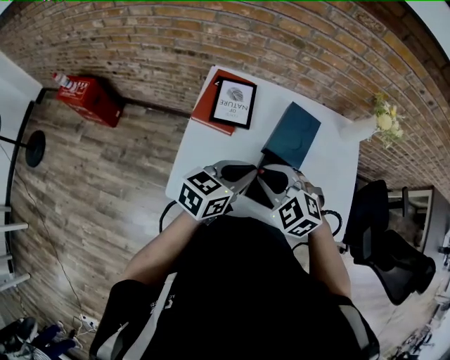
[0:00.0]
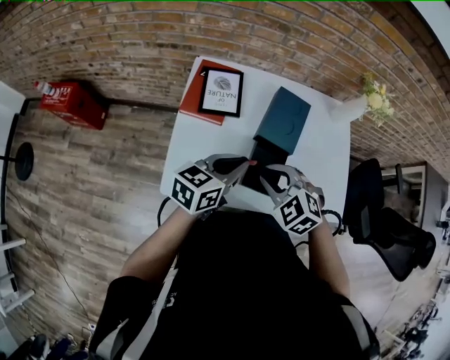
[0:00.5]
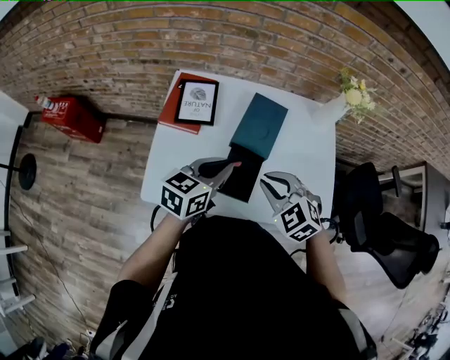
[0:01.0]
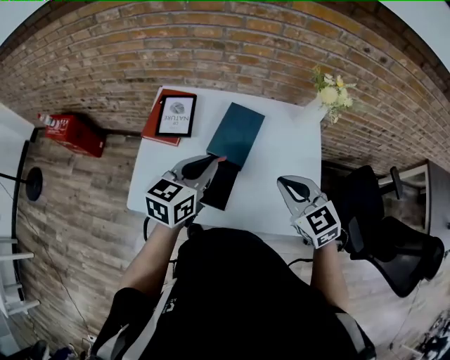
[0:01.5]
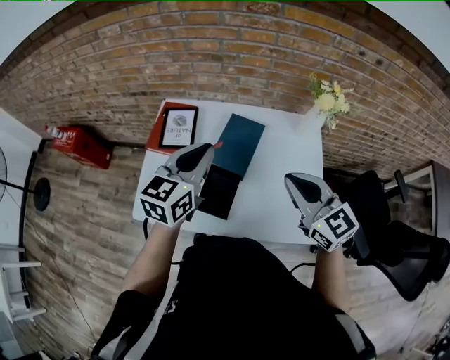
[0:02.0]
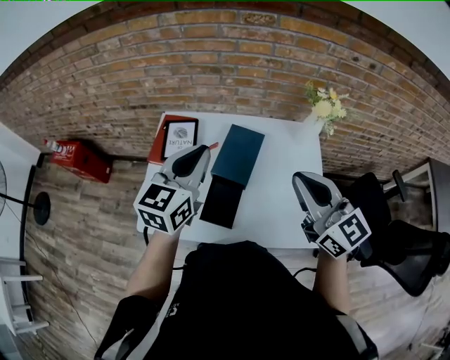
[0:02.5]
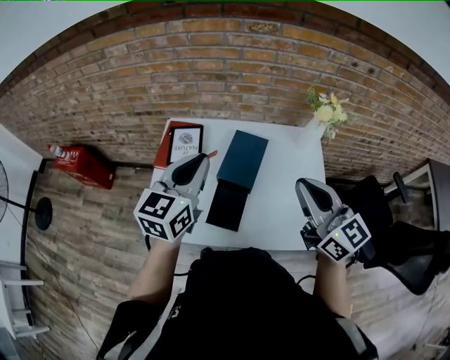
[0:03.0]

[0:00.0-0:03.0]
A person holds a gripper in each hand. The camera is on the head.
0:00.0 to 0:01.5: The right gripper moves to the right, some 25 cm, and turns by some 30 degrees; the left gripper is displaced to the right and upward by some 10 cm.
0:01.5 to 0:03.0: The left gripper moves upward and to the left, approximately 10 cm. Meanwhile the right gripper heads upward, covering some 15 cm, and rotates approximately 40 degrees.

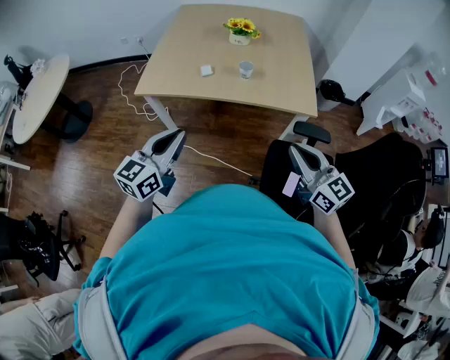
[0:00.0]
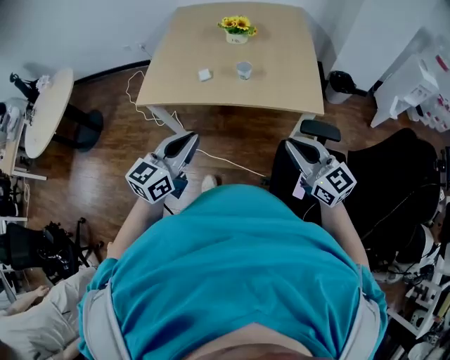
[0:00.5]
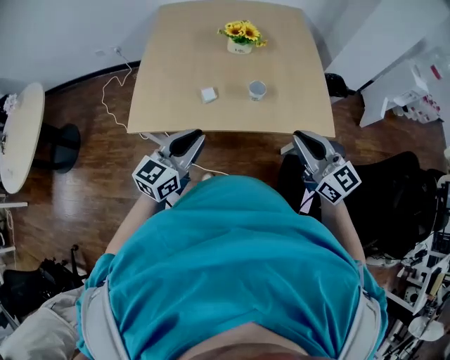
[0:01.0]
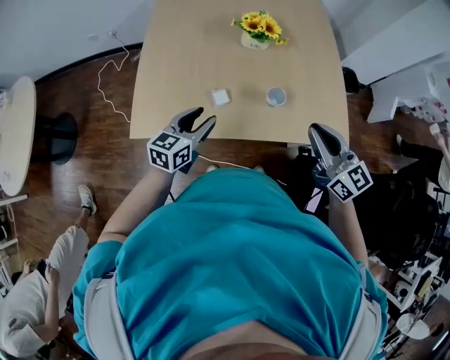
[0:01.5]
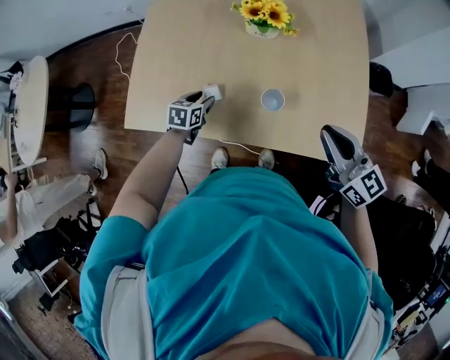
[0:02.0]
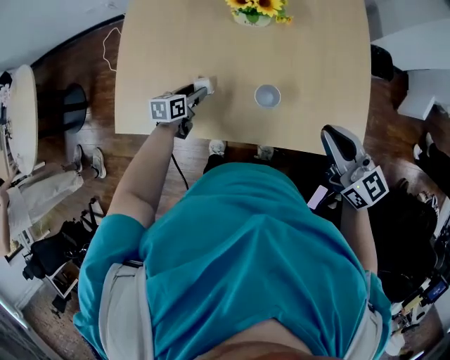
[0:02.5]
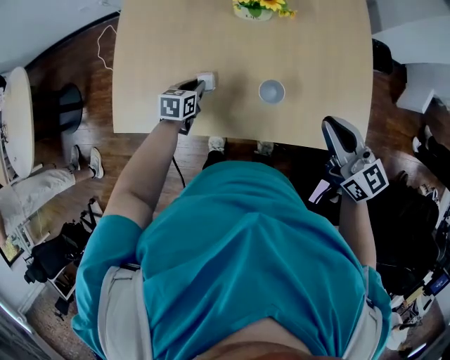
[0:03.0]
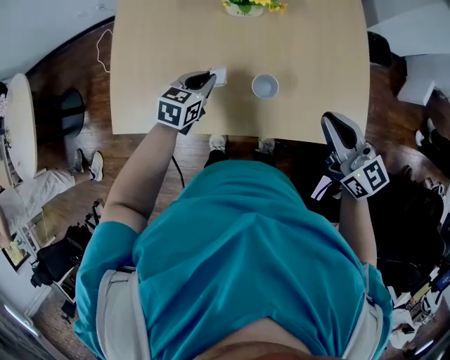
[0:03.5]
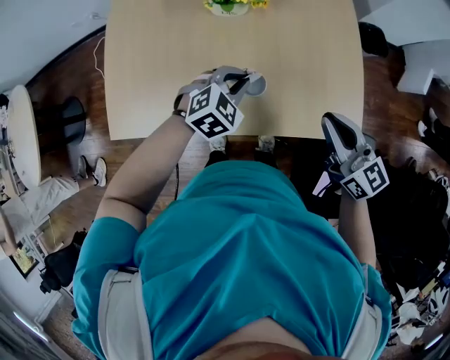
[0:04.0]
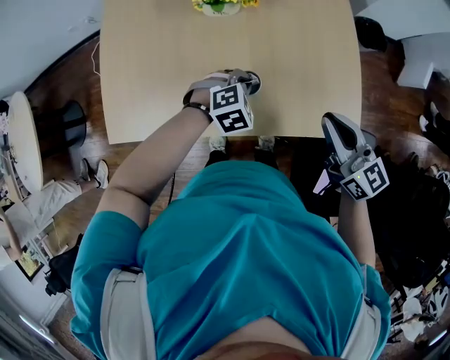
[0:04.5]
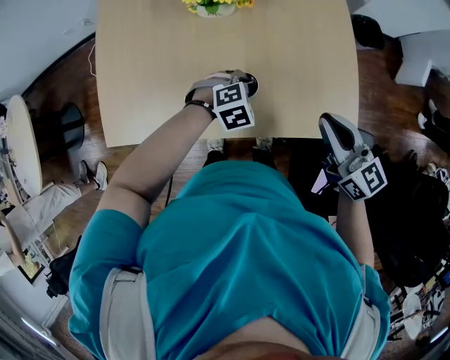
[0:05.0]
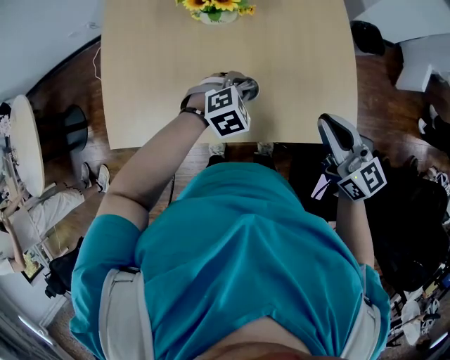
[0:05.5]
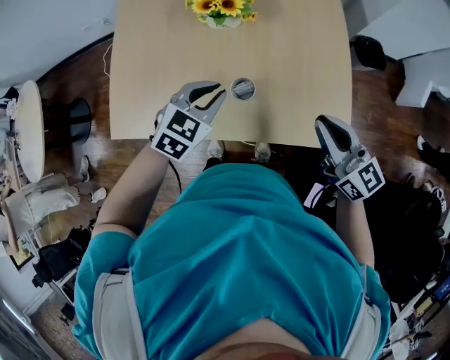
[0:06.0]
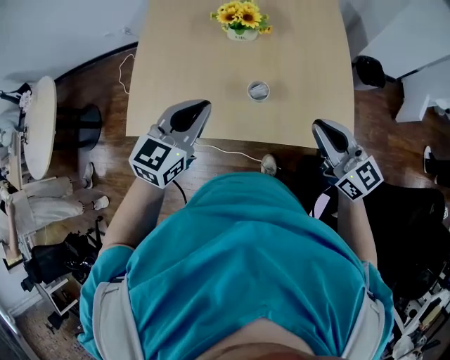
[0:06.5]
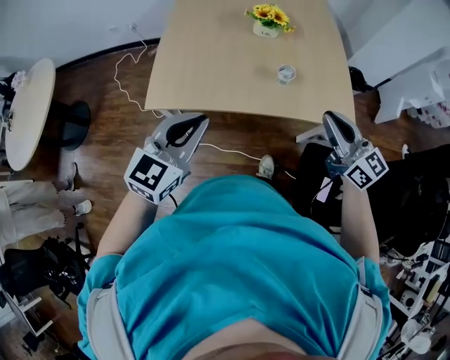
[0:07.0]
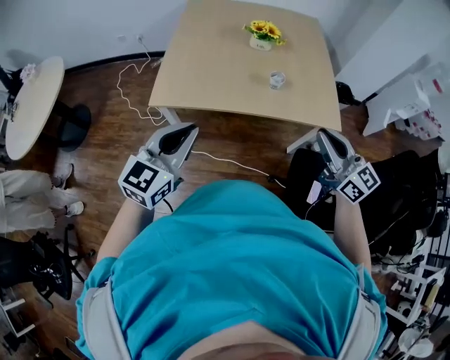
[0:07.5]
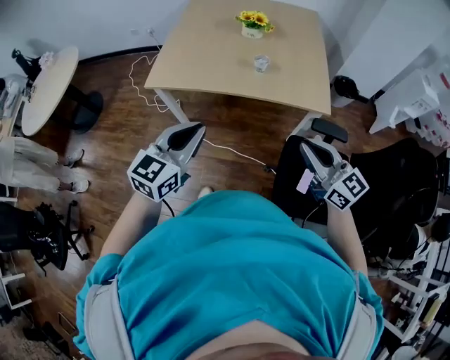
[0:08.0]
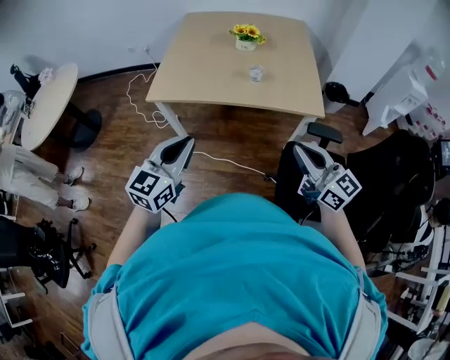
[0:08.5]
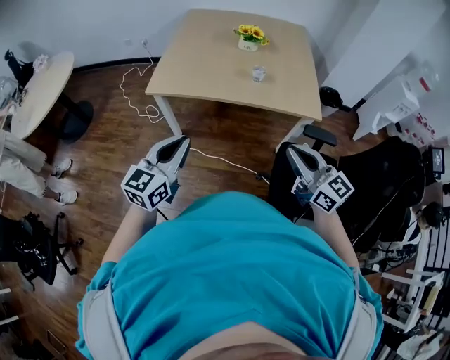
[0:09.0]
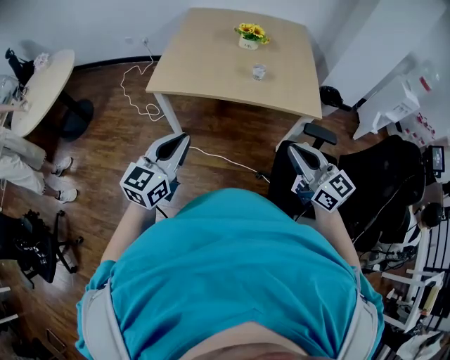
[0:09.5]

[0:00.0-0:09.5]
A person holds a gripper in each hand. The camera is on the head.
0:00.0 to 0:02.0: The pair of grippers is taken forward, roughly 40 cm. The left gripper heads downward, covering approximately 30 cm, tips its fingers downward by about 40 degrees, and opens.
0:02.0 to 0:04.0: The left gripper travels to the right and upward by some 25 cm, twists roughly 60 degrees clockwise, seen from behind, and closes up.
0:04.0 to 0:05.5: The left gripper is displaced downward by about 5 cm.
0:05.5 to 0:07.5: The left gripper moves backward, upward and to the left, approximately 60 cm, tilts its fingers approximately 60 degrees upward, and closes, while the right gripper is displaced backward, upward and to the left by approximately 35 cm.
0:07.5 to 0:09.5: Both grippers travel together backward, some 15 cm.

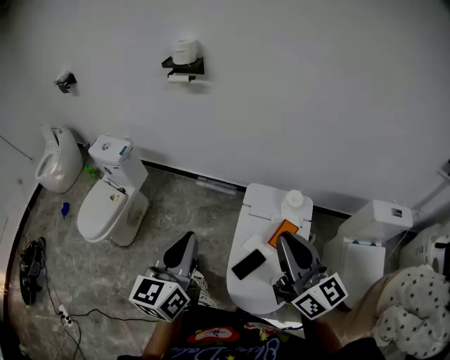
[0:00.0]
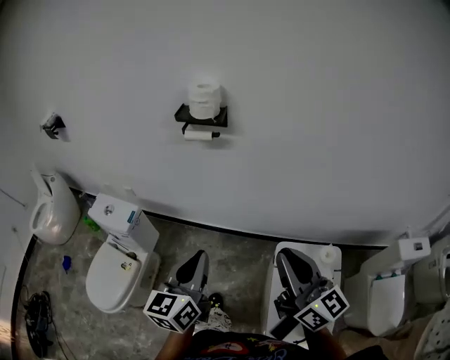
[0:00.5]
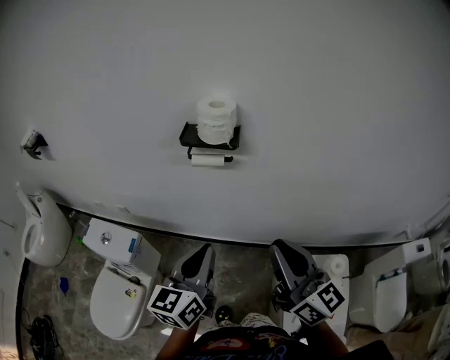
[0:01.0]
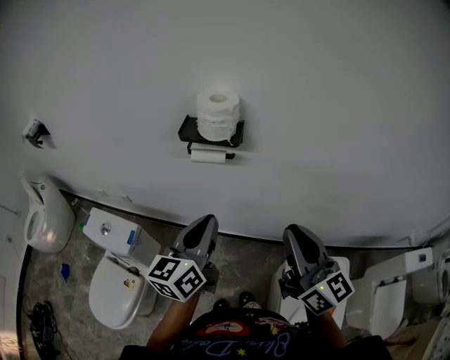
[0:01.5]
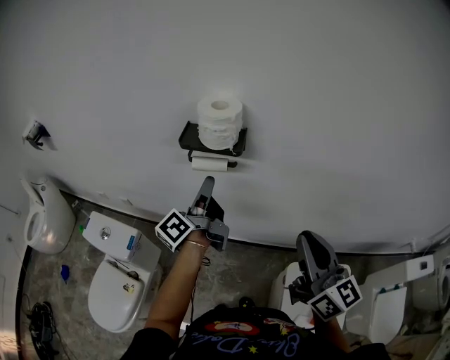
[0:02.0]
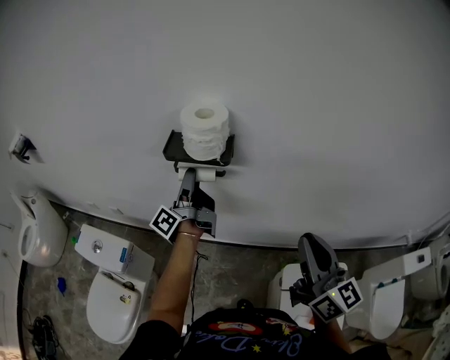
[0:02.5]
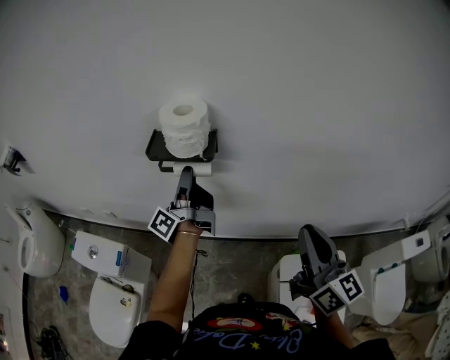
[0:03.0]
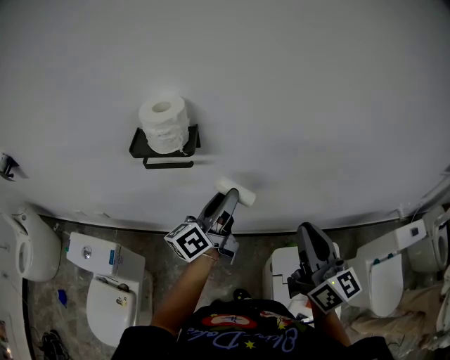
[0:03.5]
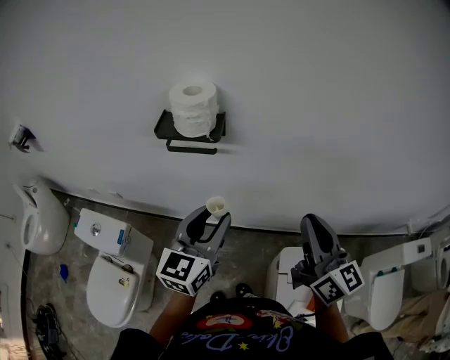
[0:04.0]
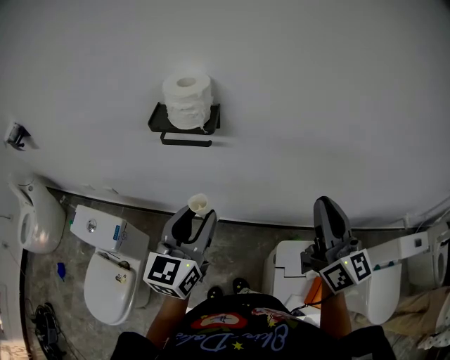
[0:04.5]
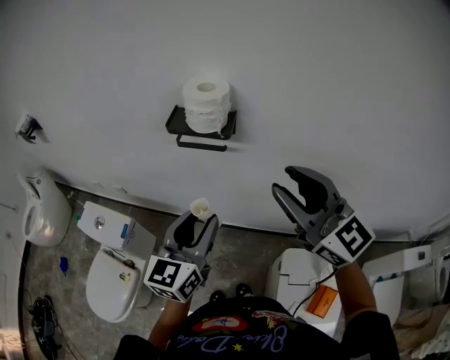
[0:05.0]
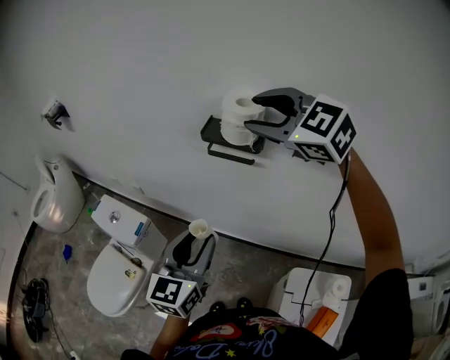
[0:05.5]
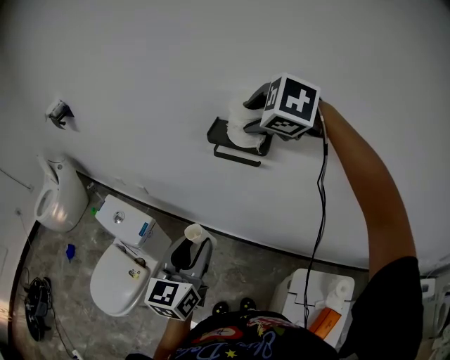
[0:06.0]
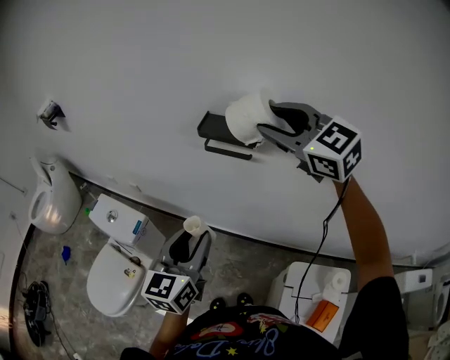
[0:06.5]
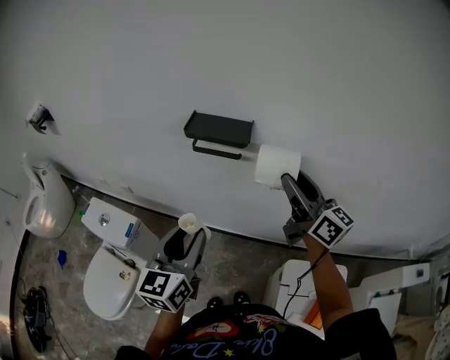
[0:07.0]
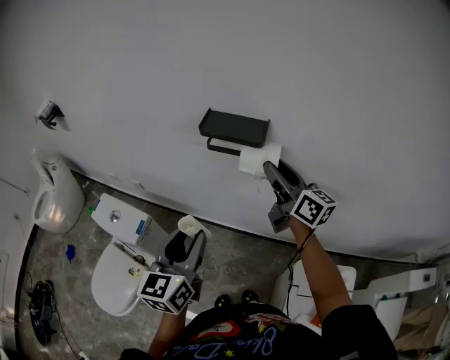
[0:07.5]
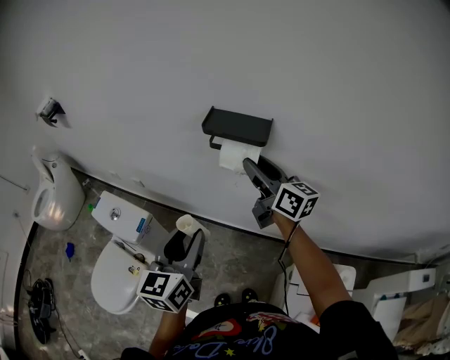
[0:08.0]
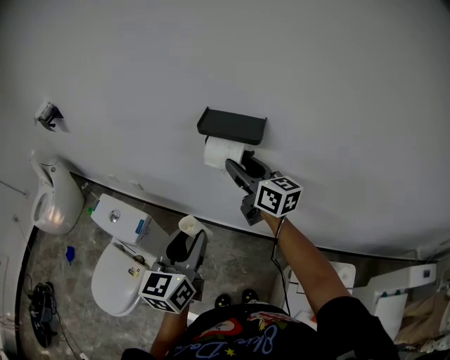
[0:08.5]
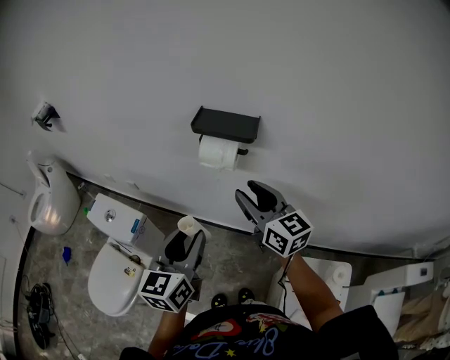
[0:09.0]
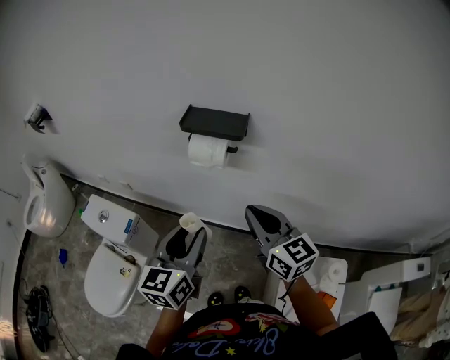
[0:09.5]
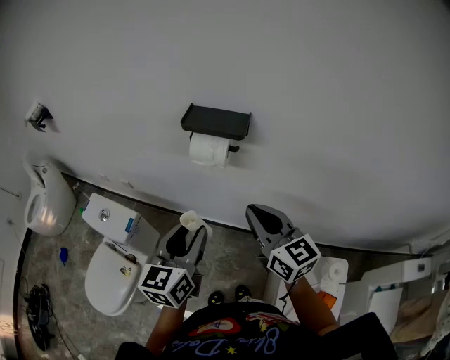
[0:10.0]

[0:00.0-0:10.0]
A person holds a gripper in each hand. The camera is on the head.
0:00.0 to 0:02.0: Both grippers are carried forward, roughly 60 cm. The left gripper twists approximately 50 degrees counterclockwise, seen from behind, and opens.
0:02.0 to 0:04.0: The left gripper goes about 15 cm backward and to the right, twists some 60 degrees clockwise, seen from behind, and opens and closes again. Meanwhile the right gripper shifts approximately 5 cm to the right.
0:04.0 to 0:06.0: The left gripper shifts by approximately 15 cm, and rotates roughly 20 degrees. The right gripper shifts by roughly 35 cm, tilts its fingers some 60 degrees downward, and opens its fingers.
0:06.0 to 0:08.0: The right gripper heads downward, covering roughly 15 cm, and tips its fingers upward by some 60 degrees.
0:08.0 to 0:10.0: The right gripper is displaced backward by roughly 15 cm, swivels approximately 20 degrees, and closes its fingers, while the left gripper heads to the right, covering about 5 cm.

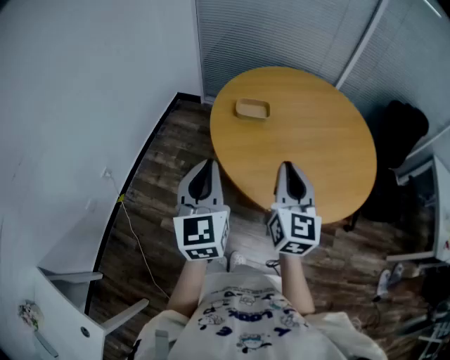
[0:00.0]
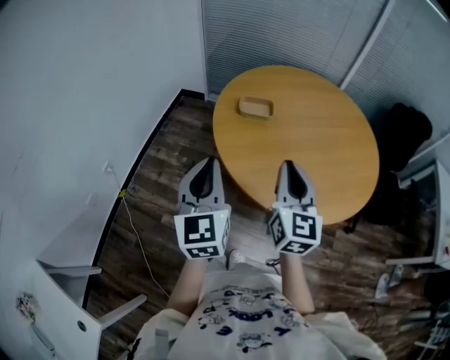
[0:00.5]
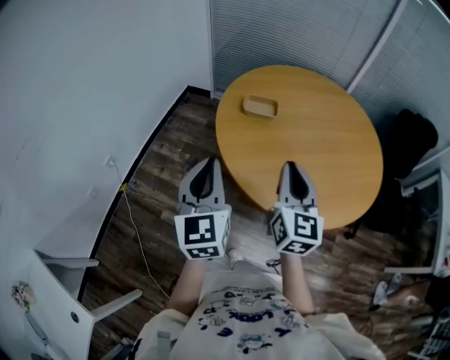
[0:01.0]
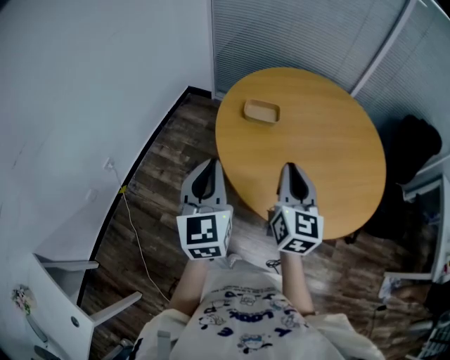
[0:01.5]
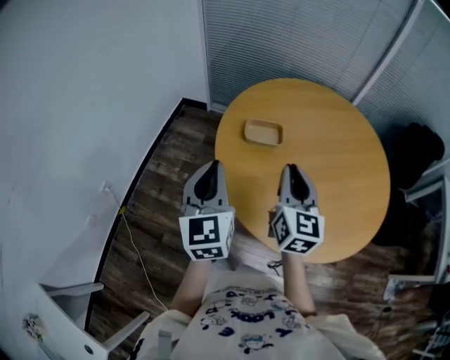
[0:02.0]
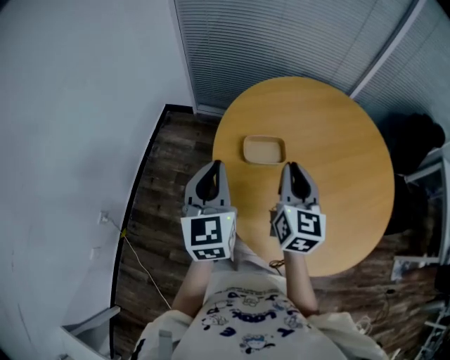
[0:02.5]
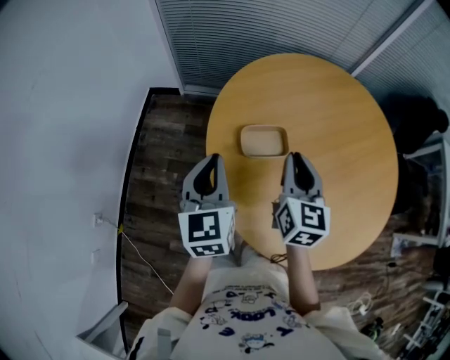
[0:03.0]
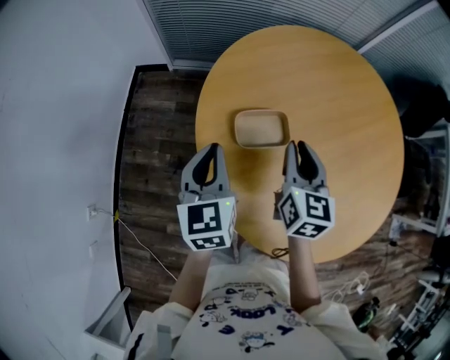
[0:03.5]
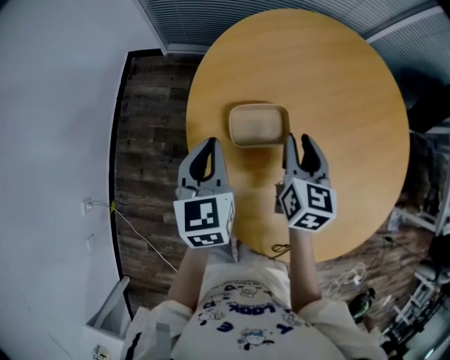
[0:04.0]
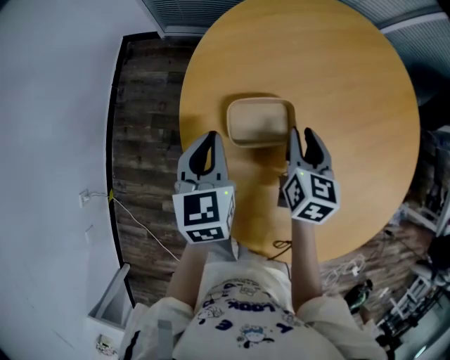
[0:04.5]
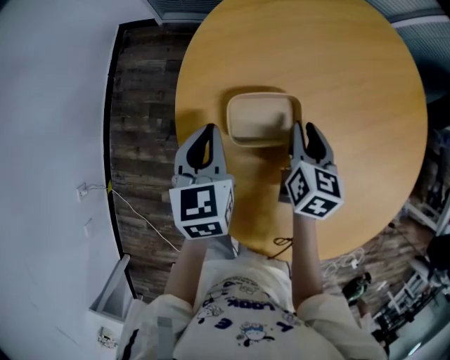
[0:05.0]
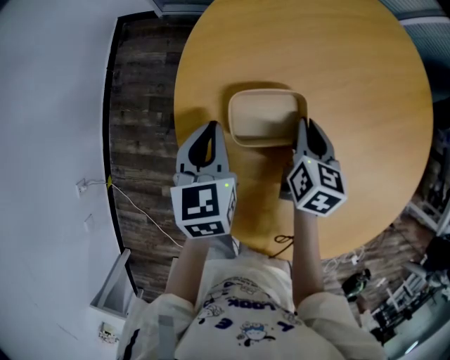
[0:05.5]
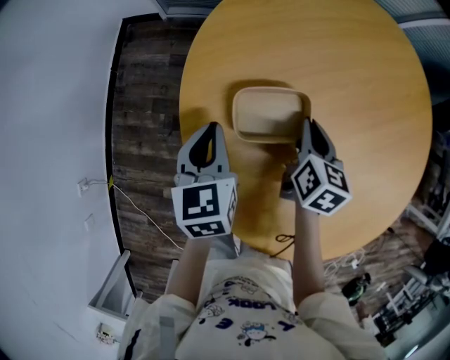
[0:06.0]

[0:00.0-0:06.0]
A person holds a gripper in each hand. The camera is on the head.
0:00.0 to 0:02.0: Both grippers travel together forward, about 15 cm.
0:02.0 to 0:04.0: The grippers both shift forward and downward by some 25 cm. The right gripper rotates some 30 degrees, and opens. Meanwhile the left gripper turns by some 30 degrees.
0:04.0 to 0:06.0: Both grippers travel together downward, roughly 10 cm. The right gripper closes its fingers.
